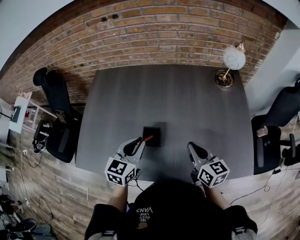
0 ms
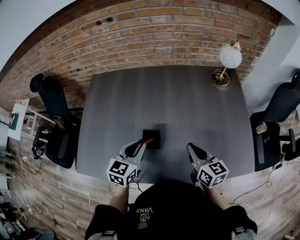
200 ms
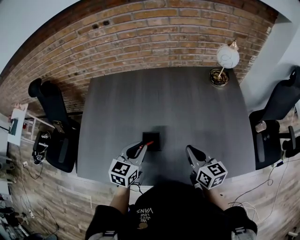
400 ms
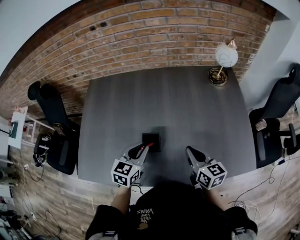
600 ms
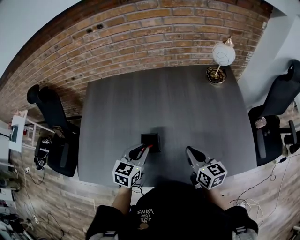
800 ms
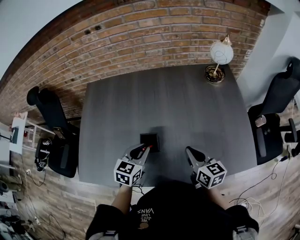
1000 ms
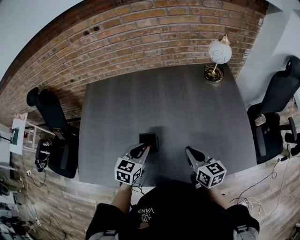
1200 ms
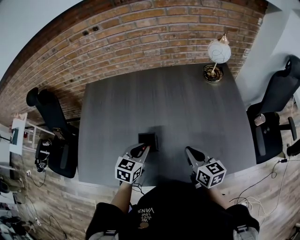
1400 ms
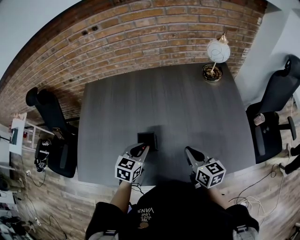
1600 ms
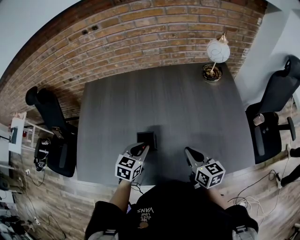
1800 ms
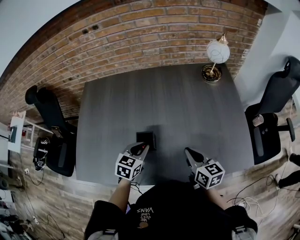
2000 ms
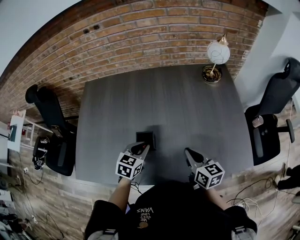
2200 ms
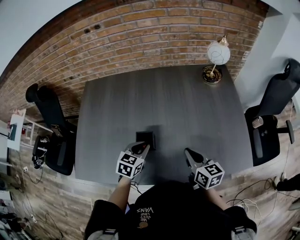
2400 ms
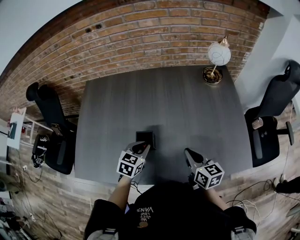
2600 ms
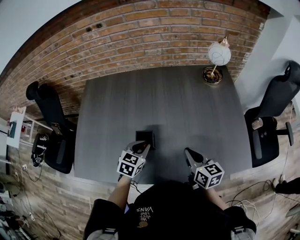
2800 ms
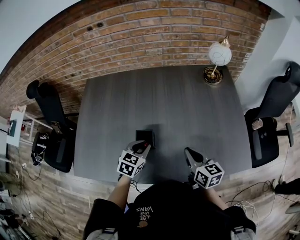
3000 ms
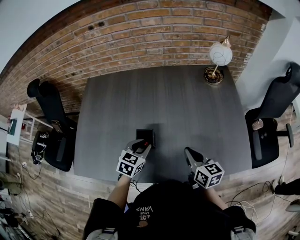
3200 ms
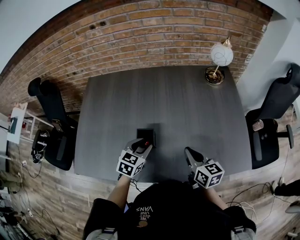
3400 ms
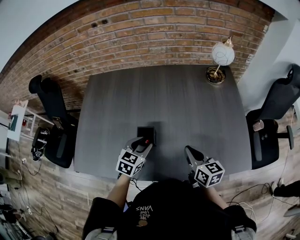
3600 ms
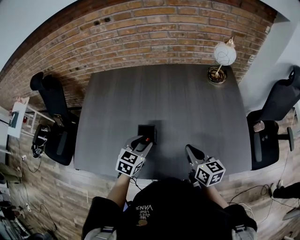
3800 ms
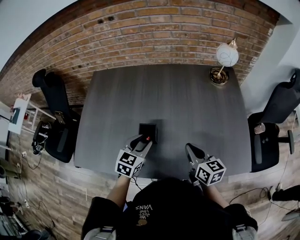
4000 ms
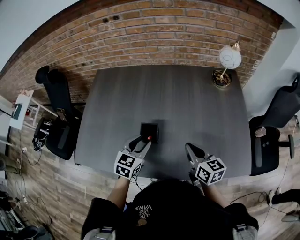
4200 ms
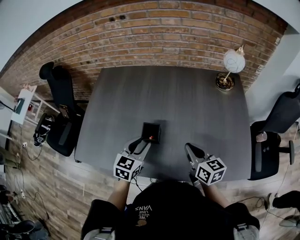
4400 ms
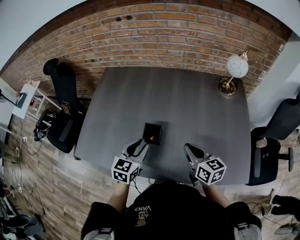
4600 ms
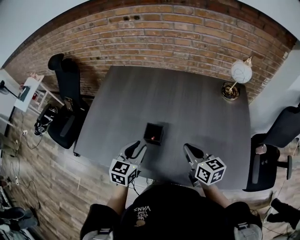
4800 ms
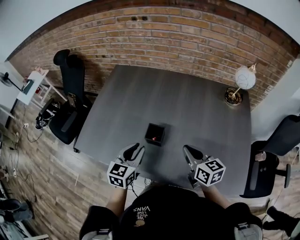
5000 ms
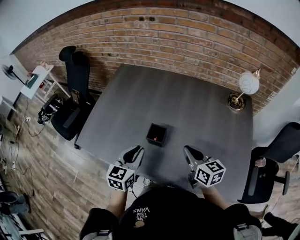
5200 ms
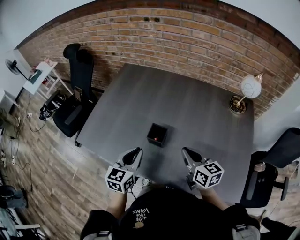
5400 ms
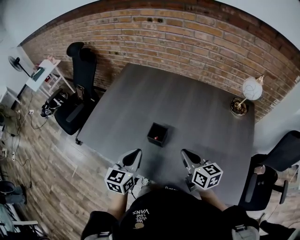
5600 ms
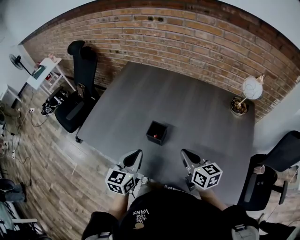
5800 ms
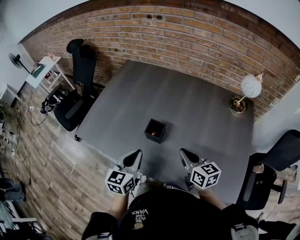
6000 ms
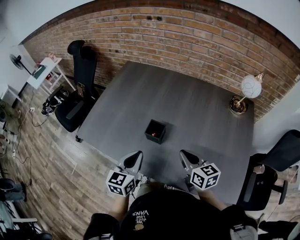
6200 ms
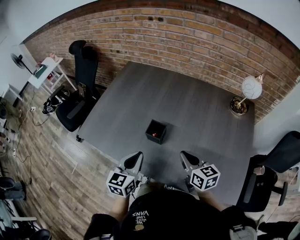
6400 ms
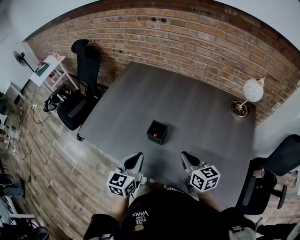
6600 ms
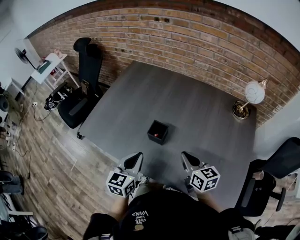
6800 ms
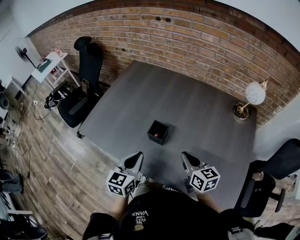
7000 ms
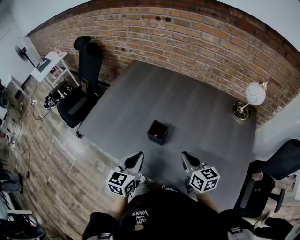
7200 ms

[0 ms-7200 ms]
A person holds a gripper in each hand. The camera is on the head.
0 ms to 1400 ms: The left gripper travels downward by roughly 10 cm.
1400 ms to 2800 ms: The grippers stay close to where they were, moving slightly.
2800 ms to 4400 ms: The left gripper goes some 5 cm upward.
4400 ms to 5800 ms: The left gripper goes some 10 cm backward, rotates approximately 30 degrees, and closes.
5800 ms to 7200 ms: There are only small adjustments of the grippers.

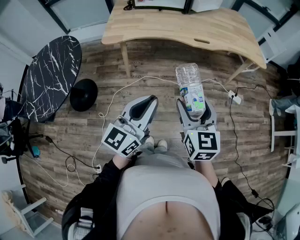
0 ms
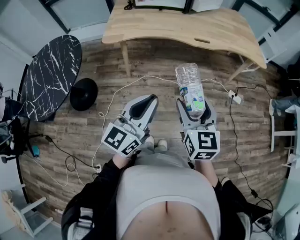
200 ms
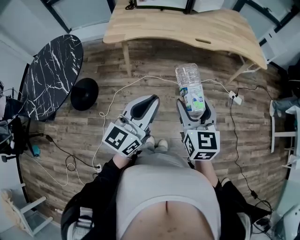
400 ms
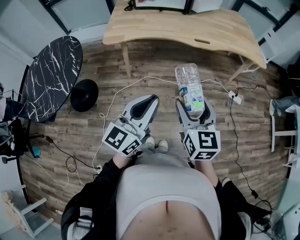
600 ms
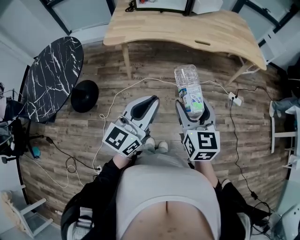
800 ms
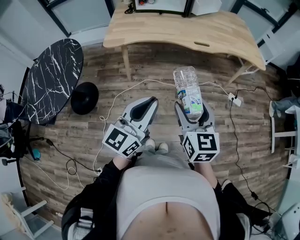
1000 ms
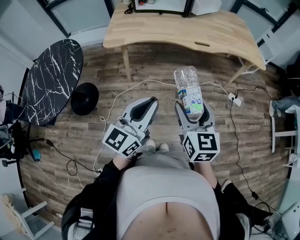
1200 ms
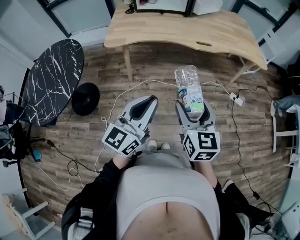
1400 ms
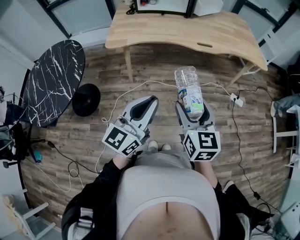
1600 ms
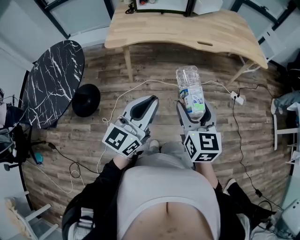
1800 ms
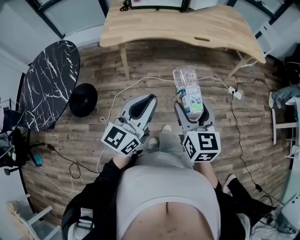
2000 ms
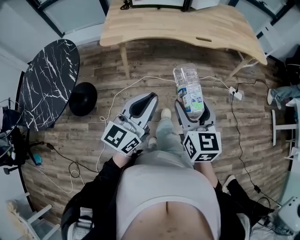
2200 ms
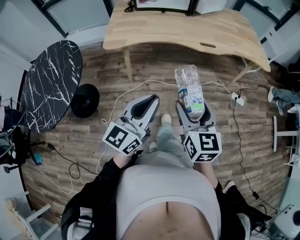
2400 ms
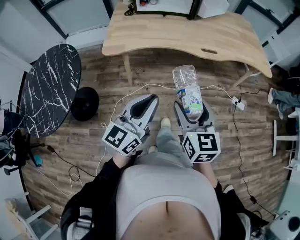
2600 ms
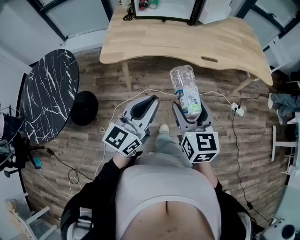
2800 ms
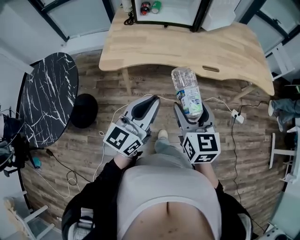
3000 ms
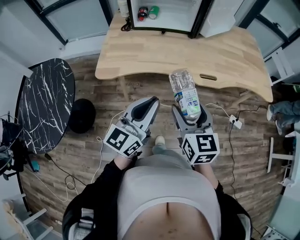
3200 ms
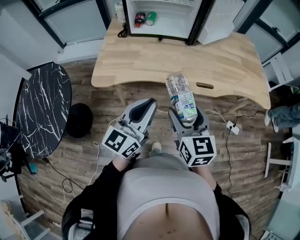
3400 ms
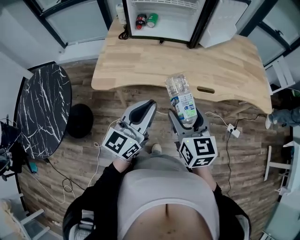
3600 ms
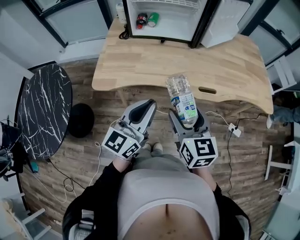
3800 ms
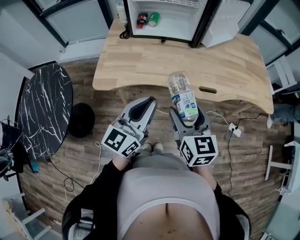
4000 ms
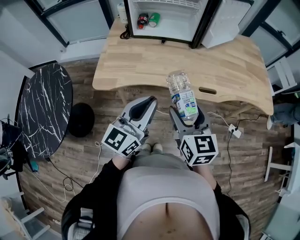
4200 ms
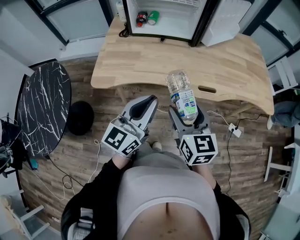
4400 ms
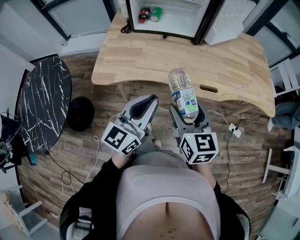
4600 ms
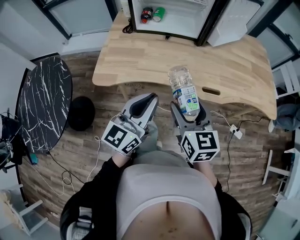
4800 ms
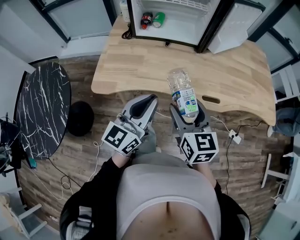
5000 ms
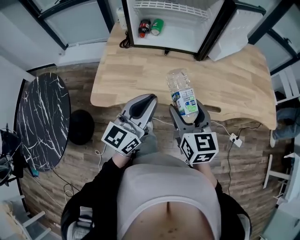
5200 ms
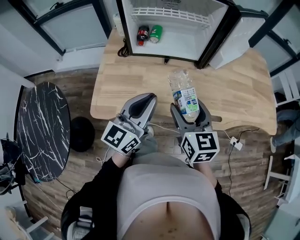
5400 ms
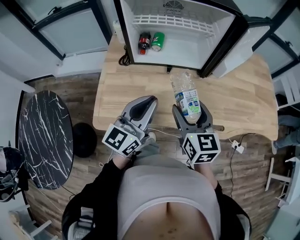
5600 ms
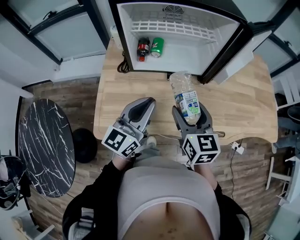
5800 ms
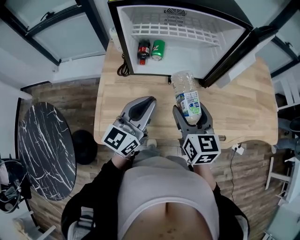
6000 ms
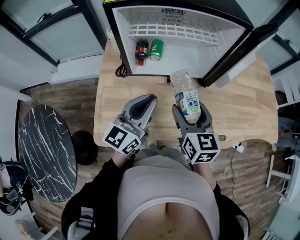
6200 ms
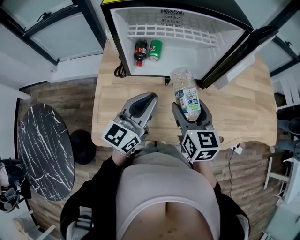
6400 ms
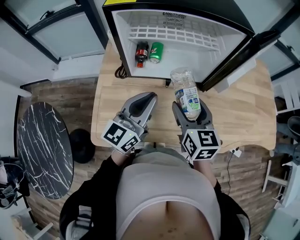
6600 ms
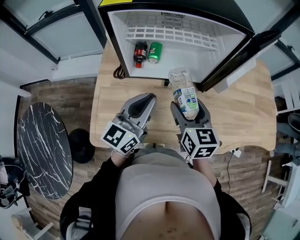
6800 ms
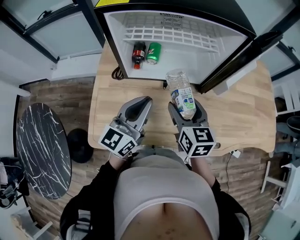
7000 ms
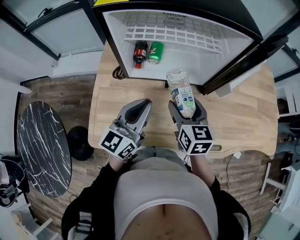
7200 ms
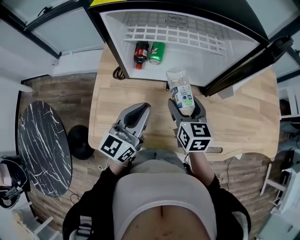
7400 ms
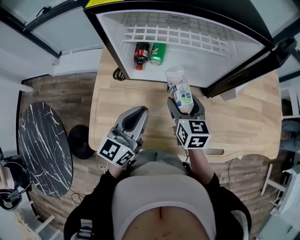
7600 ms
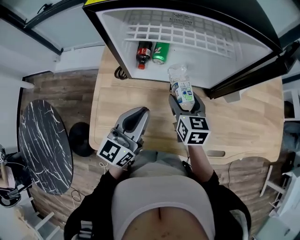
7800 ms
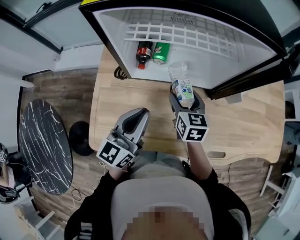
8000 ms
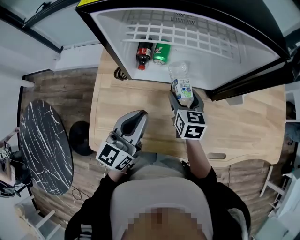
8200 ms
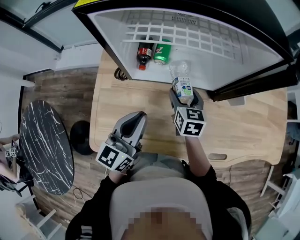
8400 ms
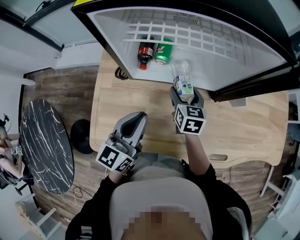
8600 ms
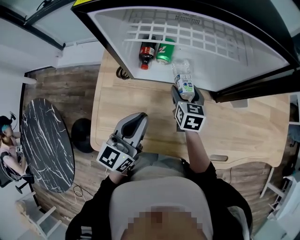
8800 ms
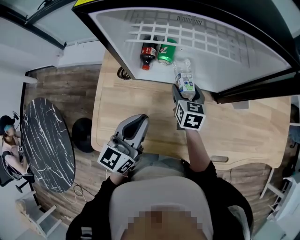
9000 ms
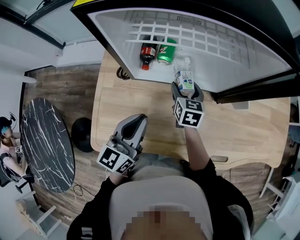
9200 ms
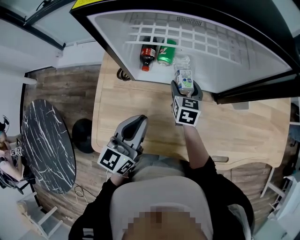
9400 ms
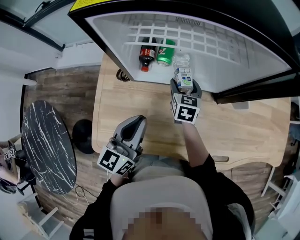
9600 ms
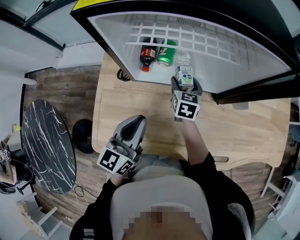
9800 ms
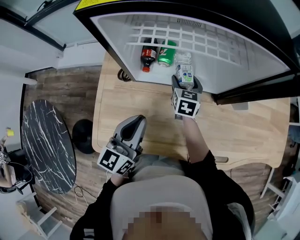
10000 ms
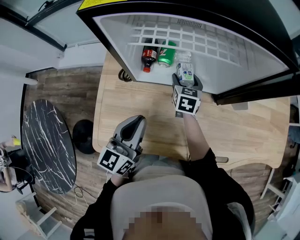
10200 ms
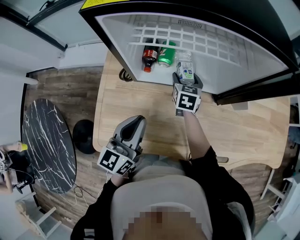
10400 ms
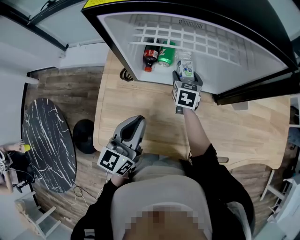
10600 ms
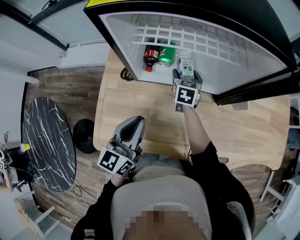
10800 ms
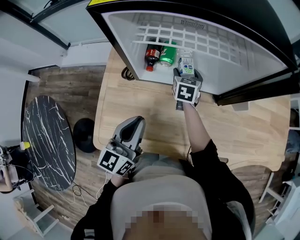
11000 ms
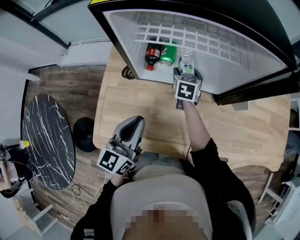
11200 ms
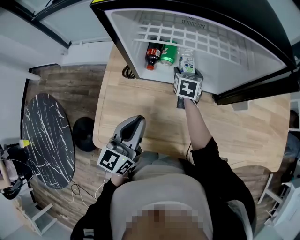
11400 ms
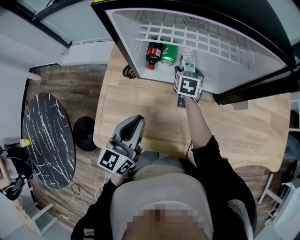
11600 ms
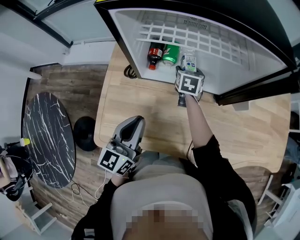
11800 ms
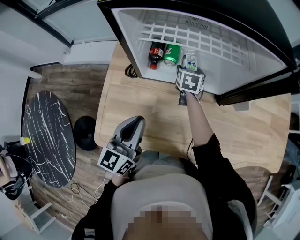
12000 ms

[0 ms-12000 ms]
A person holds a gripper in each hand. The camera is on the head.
0 ms to 1600 ms: The grippers move only a little.
1600 ms to 3000 ms: Both grippers travel together forward, some 20 cm.
3000 ms to 4400 ms: The grippers both shift forward by roughly 10 cm.
4400 ms to 6000 ms: Both grippers travel together forward, roughly 30 cm.
6000 ms to 7600 ms: The left gripper moves approximately 5 cm. The right gripper shifts approximately 15 cm forward and downward.
7600 ms to 9000 ms: The right gripper moves downward and forward, roughly 10 cm.
9000 ms to 10400 ms: The right gripper travels forward by some 5 cm.
10400 ms to 12000 ms: The grippers move only a little.

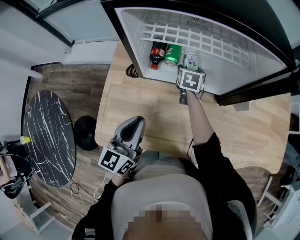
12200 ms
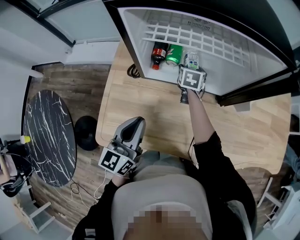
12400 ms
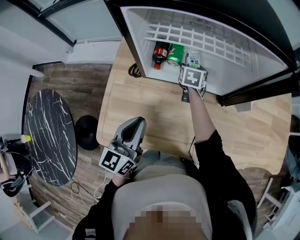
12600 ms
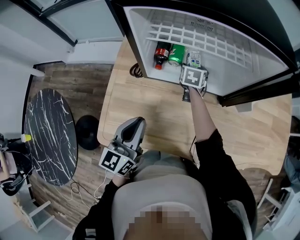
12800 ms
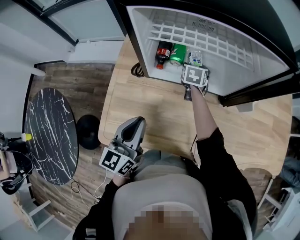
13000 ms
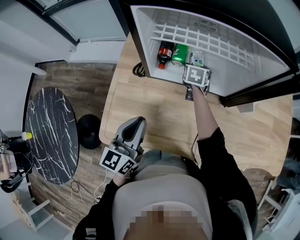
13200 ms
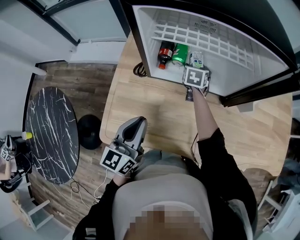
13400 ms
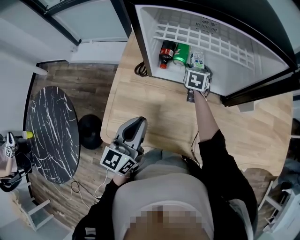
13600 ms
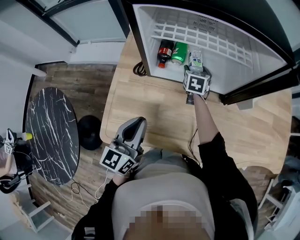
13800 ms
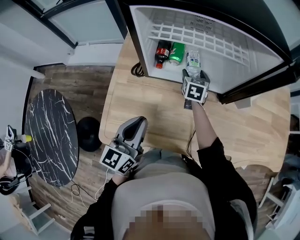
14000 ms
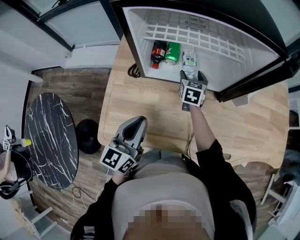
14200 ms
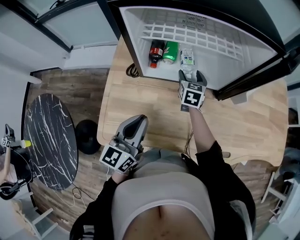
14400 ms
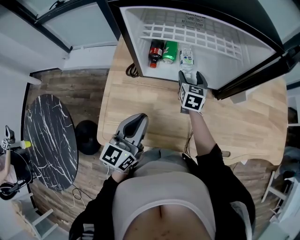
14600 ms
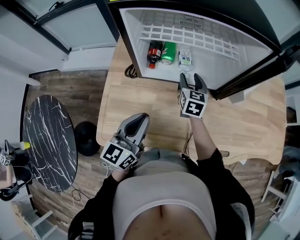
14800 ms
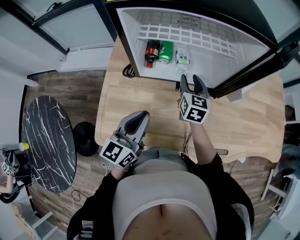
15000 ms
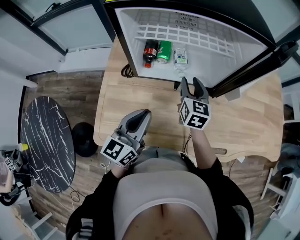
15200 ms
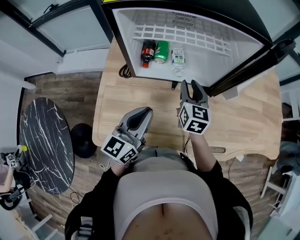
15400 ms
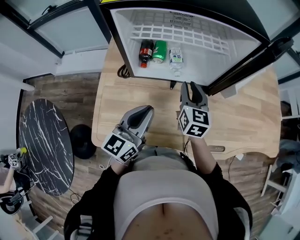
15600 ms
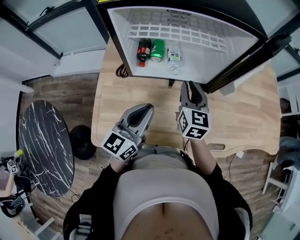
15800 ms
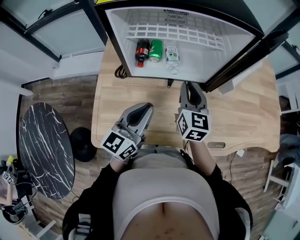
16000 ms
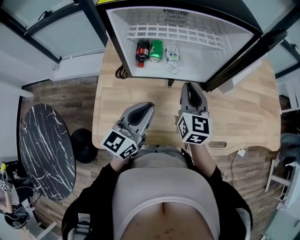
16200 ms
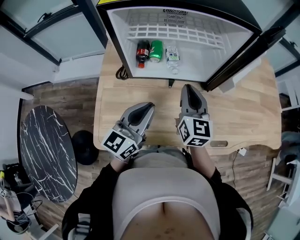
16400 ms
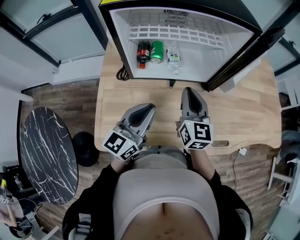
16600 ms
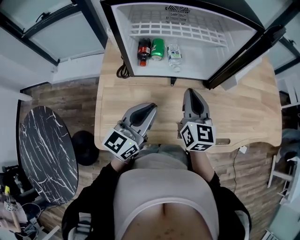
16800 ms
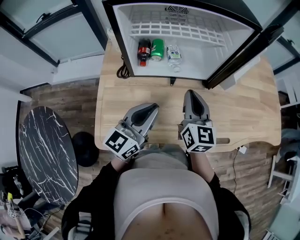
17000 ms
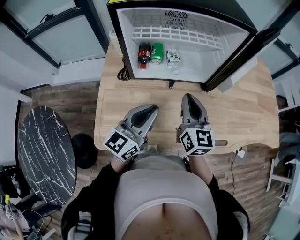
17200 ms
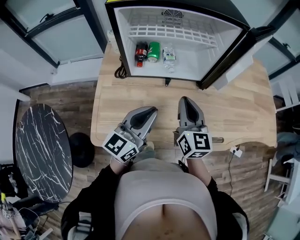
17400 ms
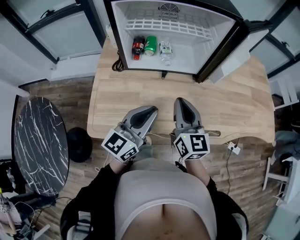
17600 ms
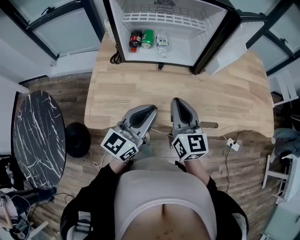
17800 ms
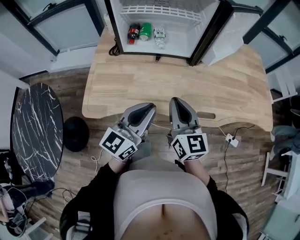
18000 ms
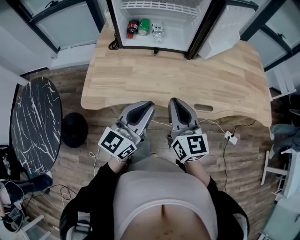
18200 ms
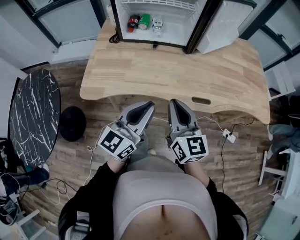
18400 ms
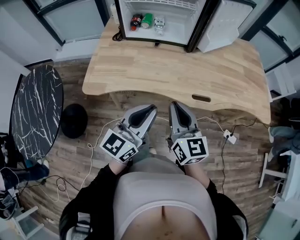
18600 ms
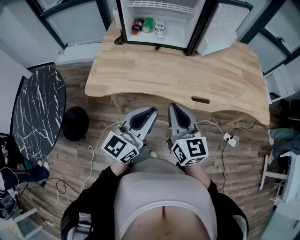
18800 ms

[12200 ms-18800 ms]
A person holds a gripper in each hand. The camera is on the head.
12200 ms to 13800 ms: There are only small adjustments of the grippers.
13800 ms to 15400 ms: The left gripper is displaced to the right by roughly 5 cm. The right gripper heads backward, upward and to the right, covering roughly 20 cm, rotates approximately 20 degrees, and closes.
15400 ms to 17200 ms: The right gripper shifts about 10 cm backward and upward.
17200 ms to 18800 ms: The right gripper goes approximately 30 cm backward, while the left gripper goes some 30 cm backward and to the right.
